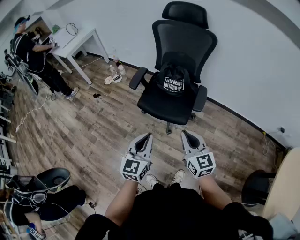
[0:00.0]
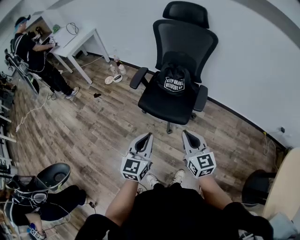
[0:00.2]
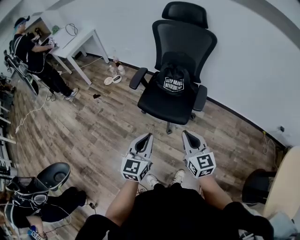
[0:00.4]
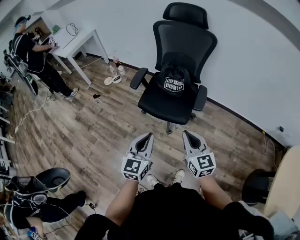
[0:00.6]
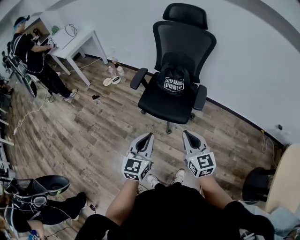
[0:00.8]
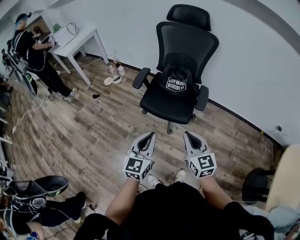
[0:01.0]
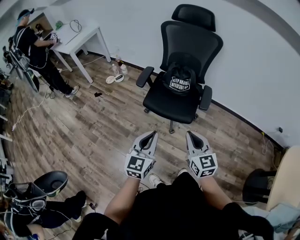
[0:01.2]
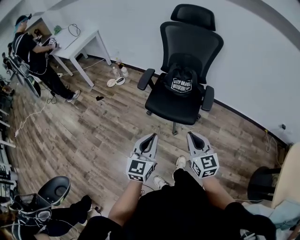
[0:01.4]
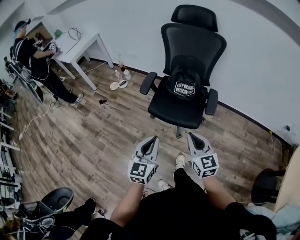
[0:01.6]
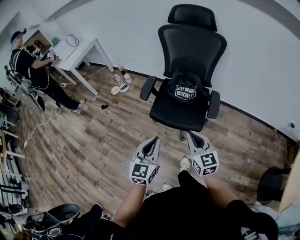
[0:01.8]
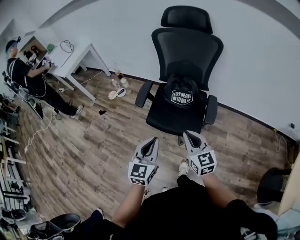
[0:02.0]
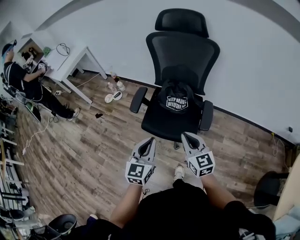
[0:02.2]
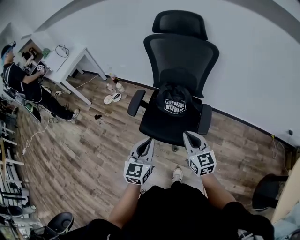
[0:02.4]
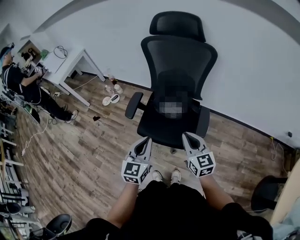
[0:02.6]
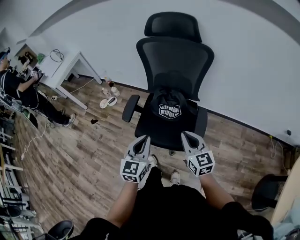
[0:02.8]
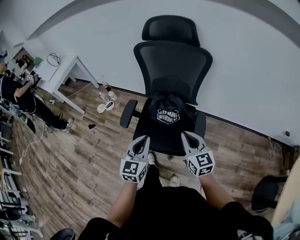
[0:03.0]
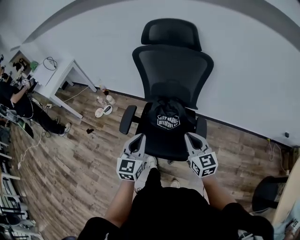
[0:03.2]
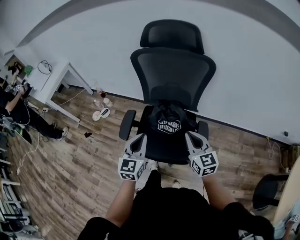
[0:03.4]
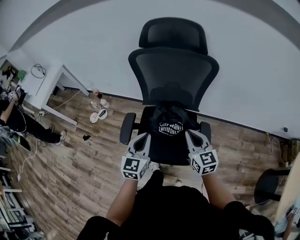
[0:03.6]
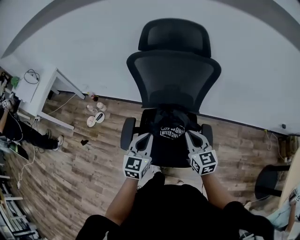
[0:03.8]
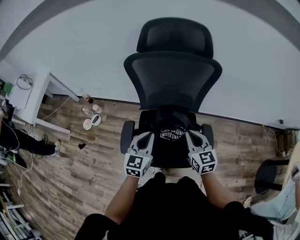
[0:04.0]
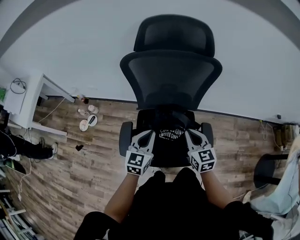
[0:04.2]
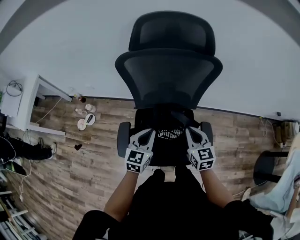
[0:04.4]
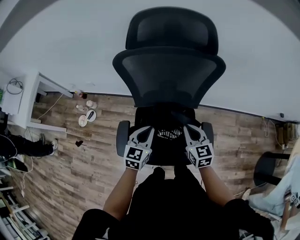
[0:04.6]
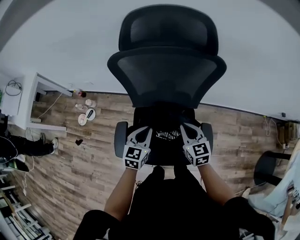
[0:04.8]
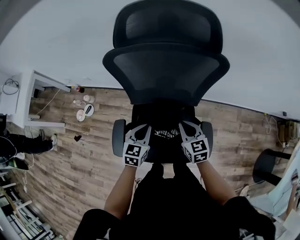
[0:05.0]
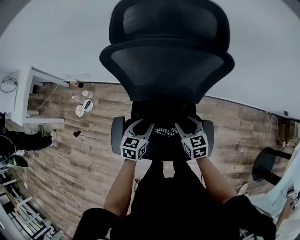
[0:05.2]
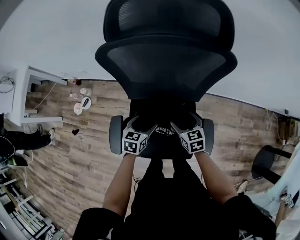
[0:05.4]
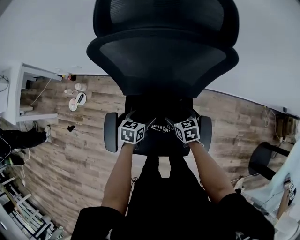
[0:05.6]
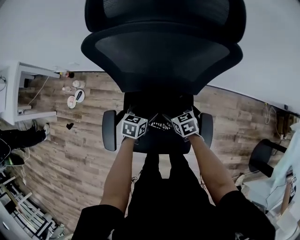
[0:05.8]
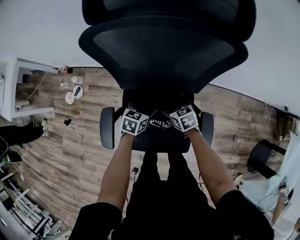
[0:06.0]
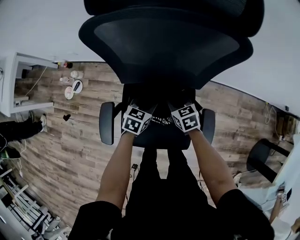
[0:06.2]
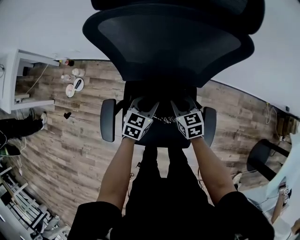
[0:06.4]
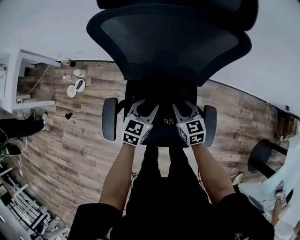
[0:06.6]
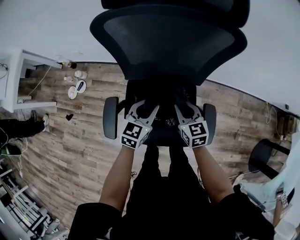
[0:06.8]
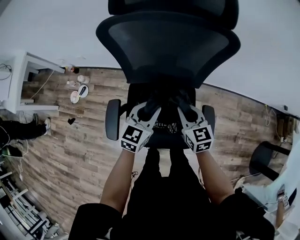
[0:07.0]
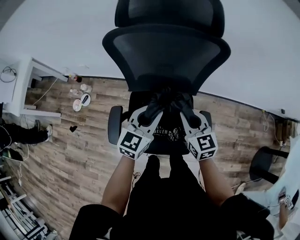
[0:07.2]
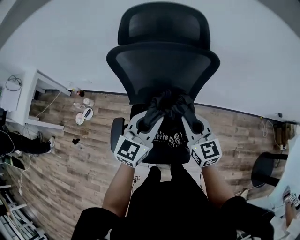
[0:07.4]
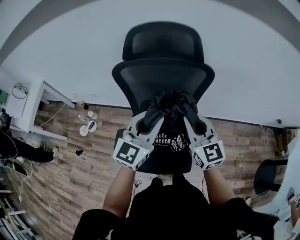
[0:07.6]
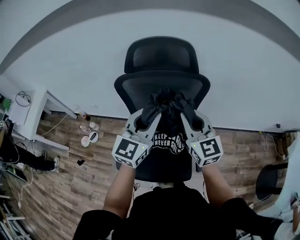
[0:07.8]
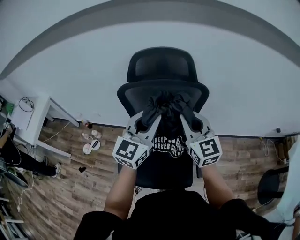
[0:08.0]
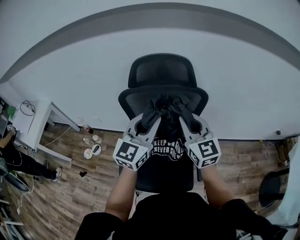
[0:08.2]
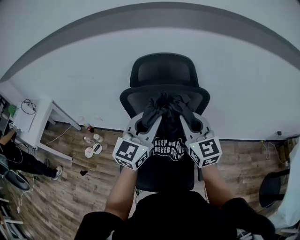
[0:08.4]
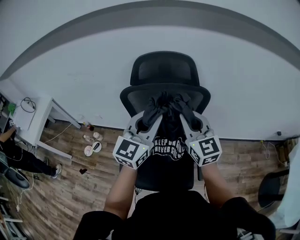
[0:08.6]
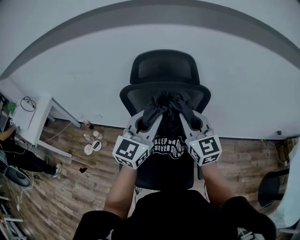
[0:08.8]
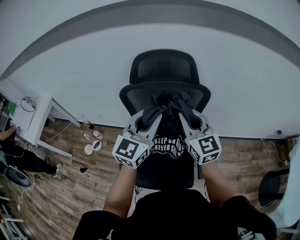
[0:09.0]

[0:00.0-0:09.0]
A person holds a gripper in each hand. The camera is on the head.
0:00.0 to 0:01.6: Both grippers travel together to the left, some 5 cm.
0:01.6 to 0:03.0: The left gripper goes approximately 25 cm forward. Meanwhile the right gripper goes some 25 cm forward and to the right.
0:03.0 to 0:04.4: Both grippers move forward, some 20 cm. The right gripper changes its angle by approximately 20 degrees; the left gripper swivels some 20 degrees.
0:04.4 to 0:06.0: Both grippers travel together downward and forward, approximately 25 cm. The left gripper turns by about 30 degrees, and opens, while the right gripper swivels about 30 degrees, and opens up.
0:06.0 to 0:07.6: The grippers both shift upward by roughly 40 cm. The left gripper points its fingers roughly 40 degrees further upward, and closes; the right gripper angles its fingers upward, by roughly 40 degrees, and closes its fingers.
0:07.6 to 0:09.0: Both grippers move upward, about 10 cm.

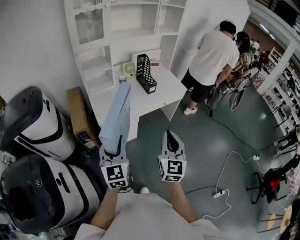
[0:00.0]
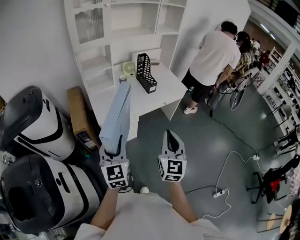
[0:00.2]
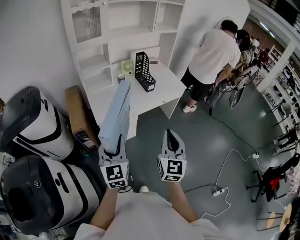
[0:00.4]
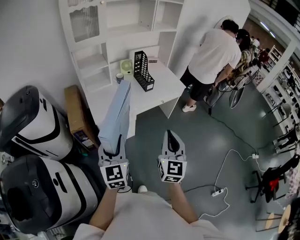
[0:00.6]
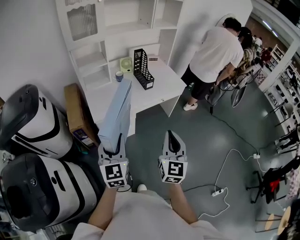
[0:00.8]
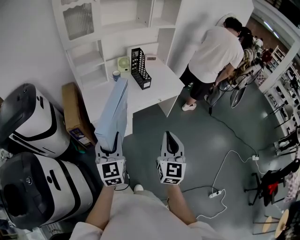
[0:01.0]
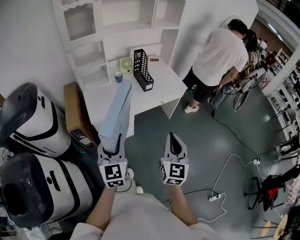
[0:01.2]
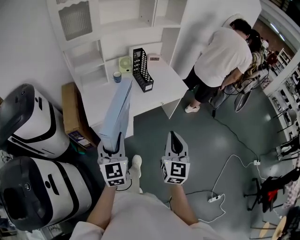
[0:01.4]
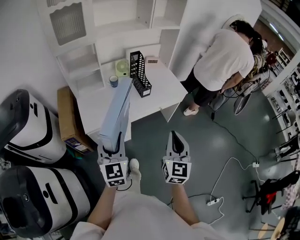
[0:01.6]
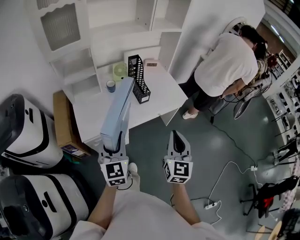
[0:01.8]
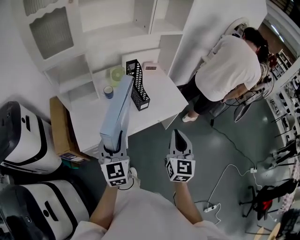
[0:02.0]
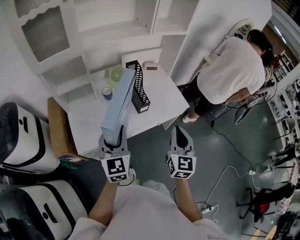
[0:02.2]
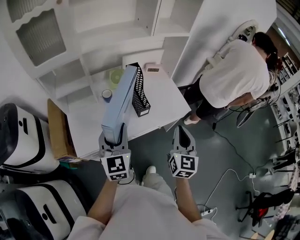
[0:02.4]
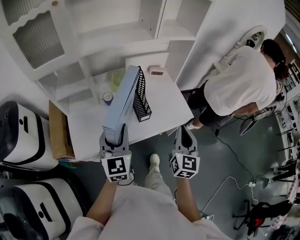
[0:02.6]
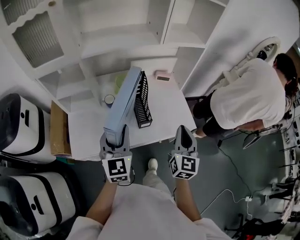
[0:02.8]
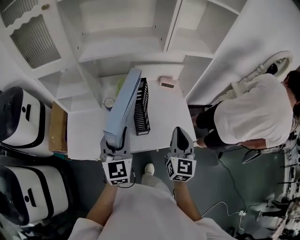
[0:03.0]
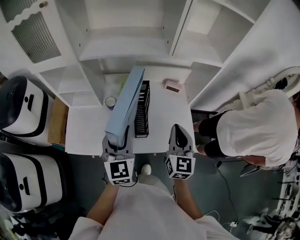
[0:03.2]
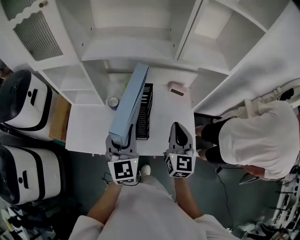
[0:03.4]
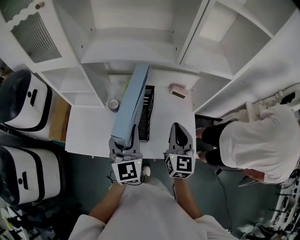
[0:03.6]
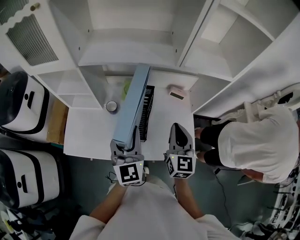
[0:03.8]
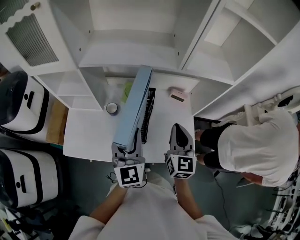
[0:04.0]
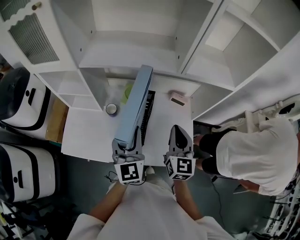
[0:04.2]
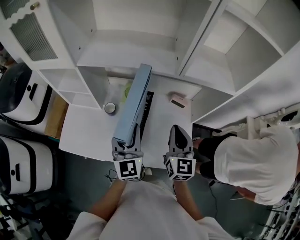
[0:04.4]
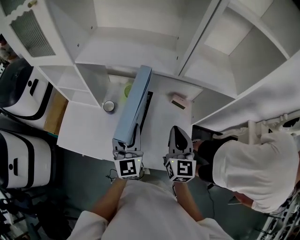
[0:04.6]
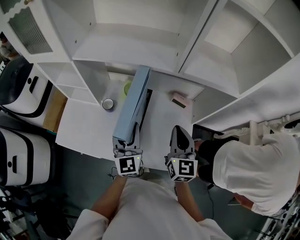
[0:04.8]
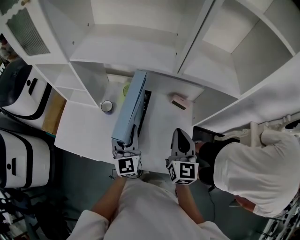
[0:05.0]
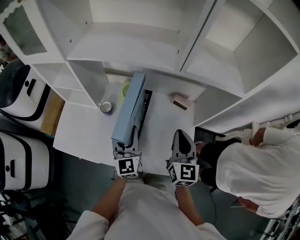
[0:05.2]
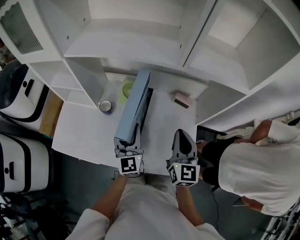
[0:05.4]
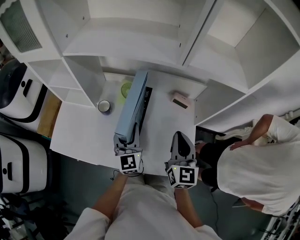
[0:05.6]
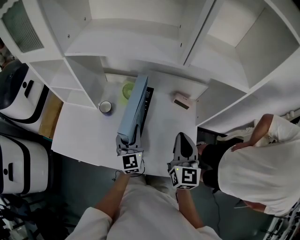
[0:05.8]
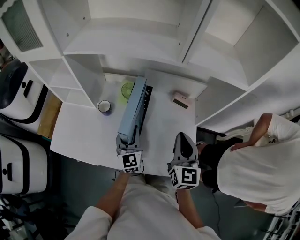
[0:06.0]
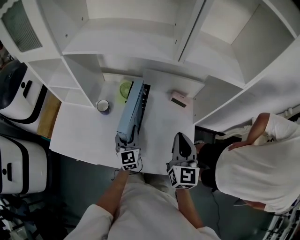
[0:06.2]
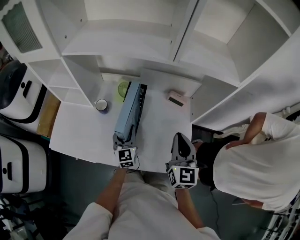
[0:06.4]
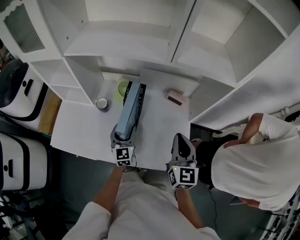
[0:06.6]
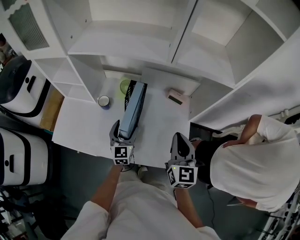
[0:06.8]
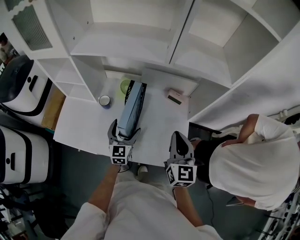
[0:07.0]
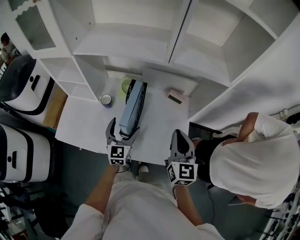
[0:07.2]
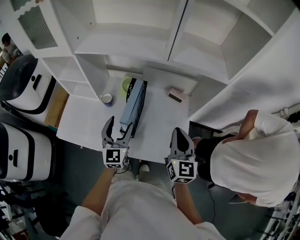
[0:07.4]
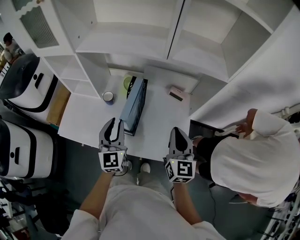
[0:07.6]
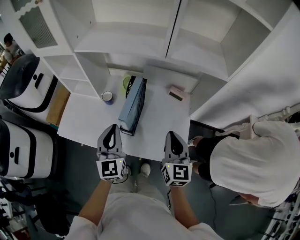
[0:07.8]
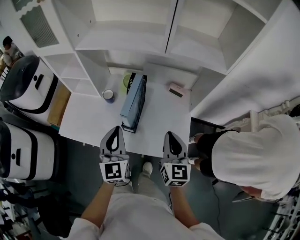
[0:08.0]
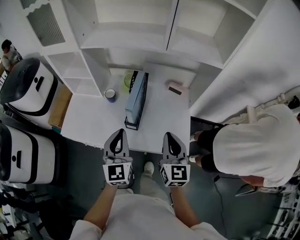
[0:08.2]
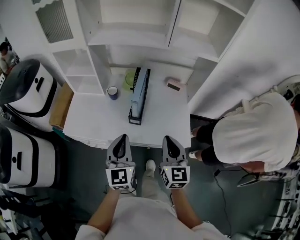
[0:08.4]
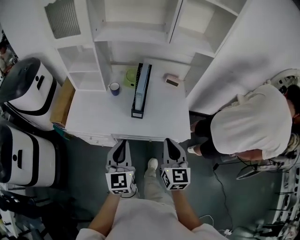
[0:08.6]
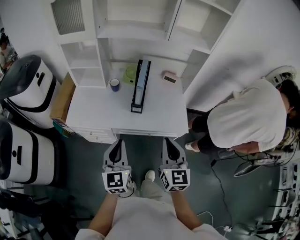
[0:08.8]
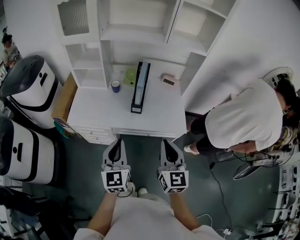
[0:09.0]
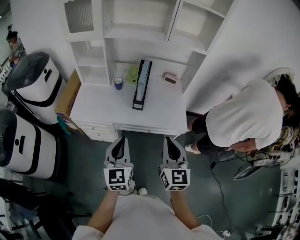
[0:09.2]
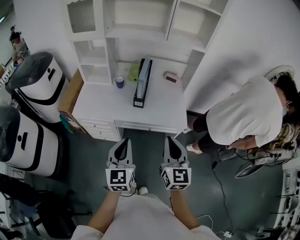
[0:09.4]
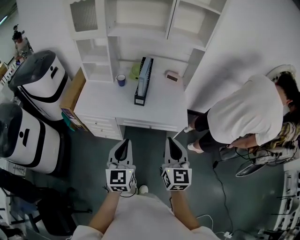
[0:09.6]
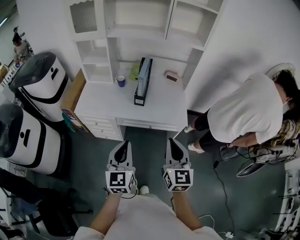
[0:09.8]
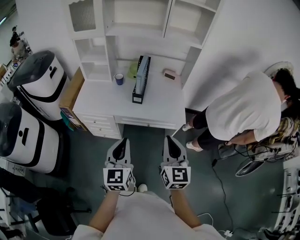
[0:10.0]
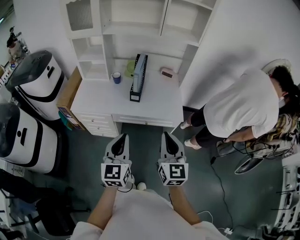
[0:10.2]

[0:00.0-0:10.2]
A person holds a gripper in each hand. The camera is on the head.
0:00.0 to 0:01.4: The left gripper goes approximately 10 cm forward and to the right. The right gripper heads to the right and forward, covering roughly 15 cm.
0:01.4 to 0:03.0: Both grippers are carried forward, roughly 50 cm.
0:03.0 to 0:04.4: The right gripper goes approximately 20 cm forward. The left gripper heads forward and to the right, covering approximately 15 cm.
0:04.4 to 0:05.8: The left gripper moves downward, about 15 cm, while the right gripper heads downward, covering some 10 cm.
0:05.8 to 0:07.2: The right gripper is displaced upward and backward by approximately 10 cm, while the left gripper travels downward and back again, roughly 5 cm each way, and opens its fingers.
0:07.2 to 0:08.8: The right gripper is displaced backward and to the left by roughly 35 cm; the left gripper shifts some 35 cm backward, and closes.
0:08.8 to 0:10.2: The right gripper shifts about 15 cm backward, while the left gripper is displaced backward and to the right by roughly 15 cm.

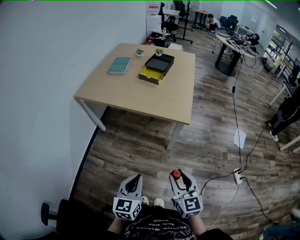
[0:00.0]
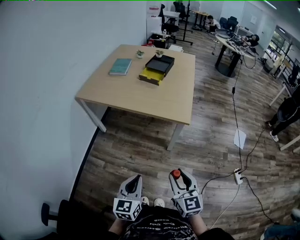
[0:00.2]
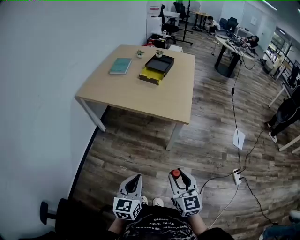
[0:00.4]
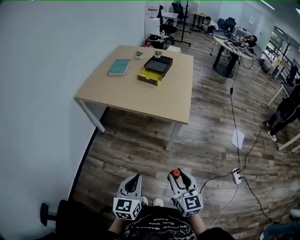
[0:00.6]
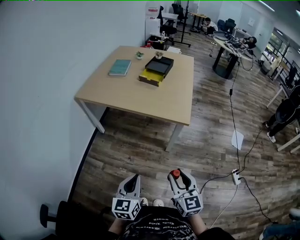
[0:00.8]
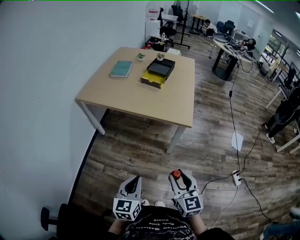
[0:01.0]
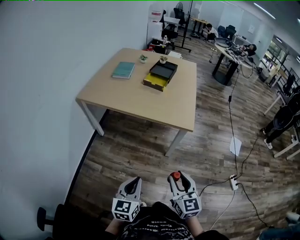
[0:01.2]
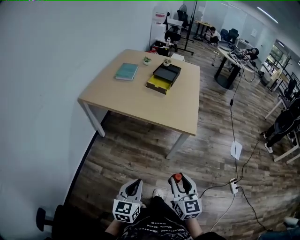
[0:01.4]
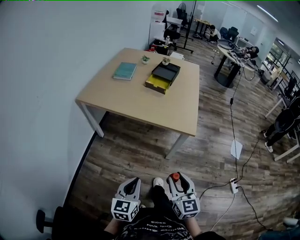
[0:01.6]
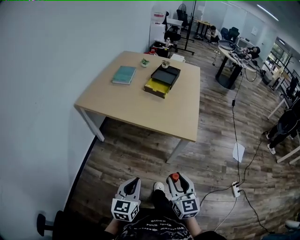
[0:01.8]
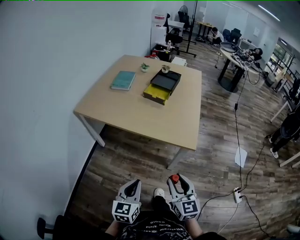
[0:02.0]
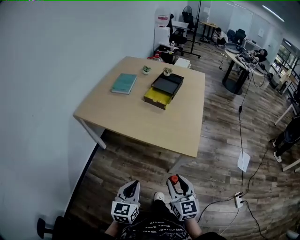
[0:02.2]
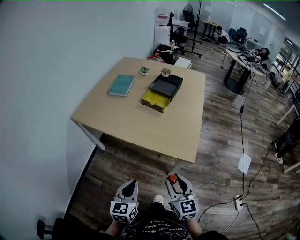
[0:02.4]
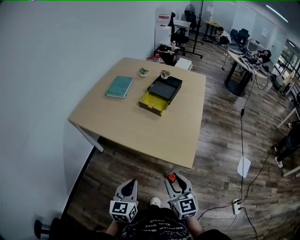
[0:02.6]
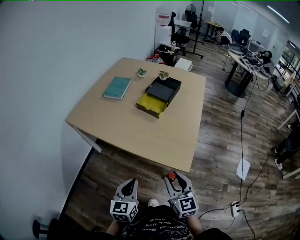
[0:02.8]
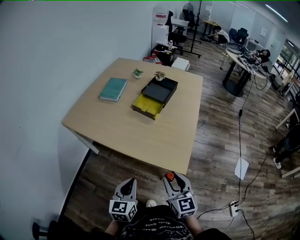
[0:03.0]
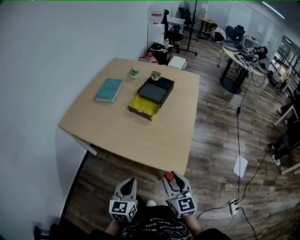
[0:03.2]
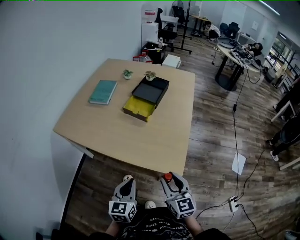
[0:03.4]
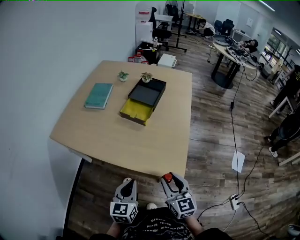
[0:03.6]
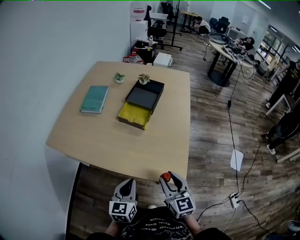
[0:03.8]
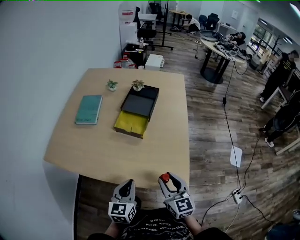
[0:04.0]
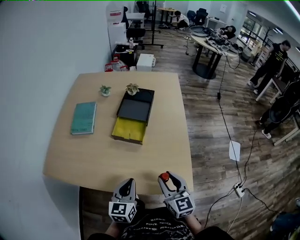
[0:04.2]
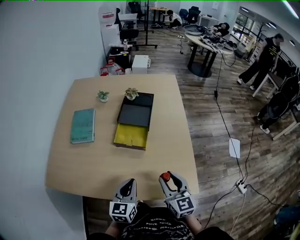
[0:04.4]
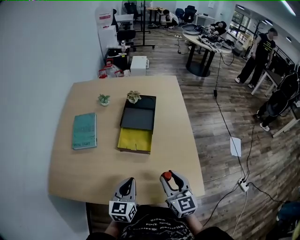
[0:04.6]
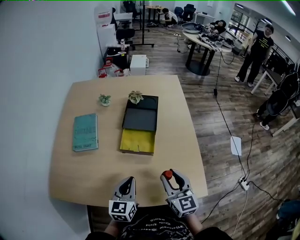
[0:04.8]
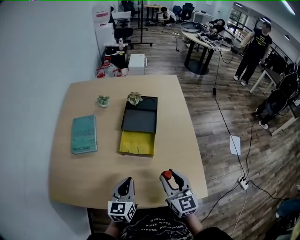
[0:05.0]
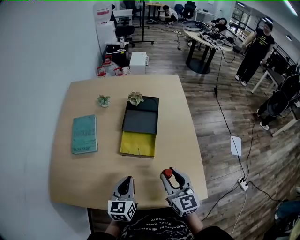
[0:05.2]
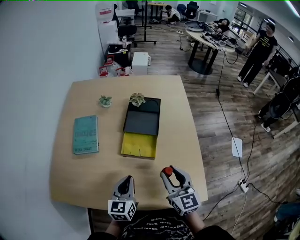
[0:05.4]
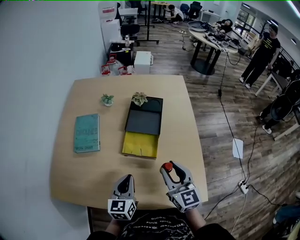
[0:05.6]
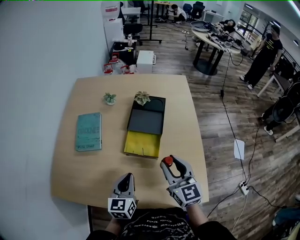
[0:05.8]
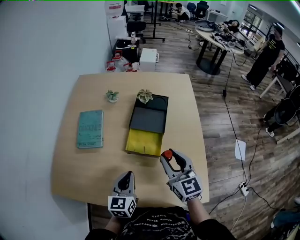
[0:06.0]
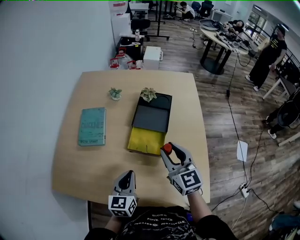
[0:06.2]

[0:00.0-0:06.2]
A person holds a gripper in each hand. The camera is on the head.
0:00.0 to 0:01.6: Both grippers move to the left, about 5 cm.
0:01.6 to 0:03.2: Both grippers travel together forward and to the right, some 35 cm.
0:03.2 to 0:04.6: The two grippers go some 30 cm forward. The left gripper swivels roughly 20 degrees.
0:04.6 to 0:06.2: The left gripper is displaced forward by approximately 10 cm. Meanwhile the right gripper heads forward, covering some 15 cm.
